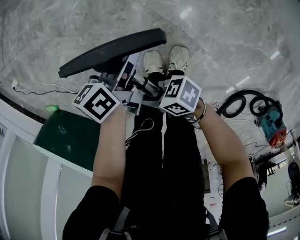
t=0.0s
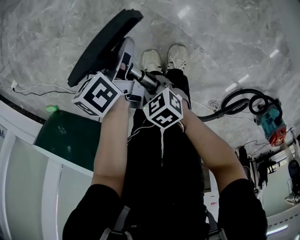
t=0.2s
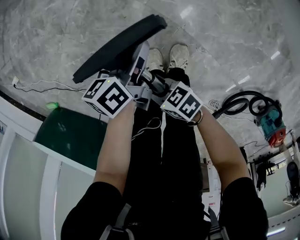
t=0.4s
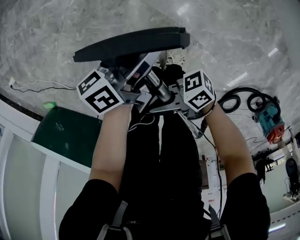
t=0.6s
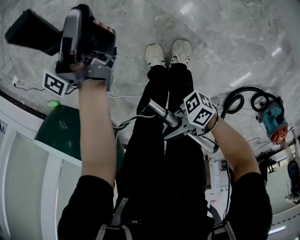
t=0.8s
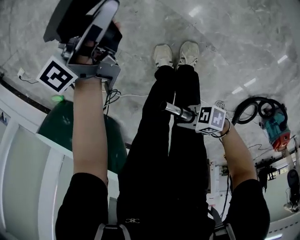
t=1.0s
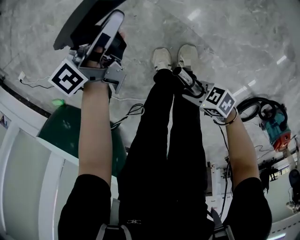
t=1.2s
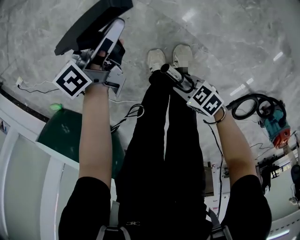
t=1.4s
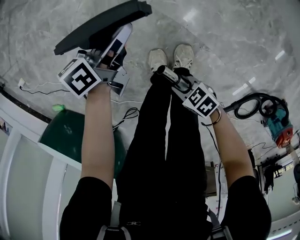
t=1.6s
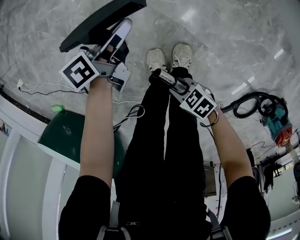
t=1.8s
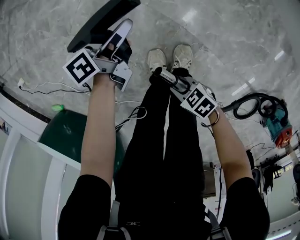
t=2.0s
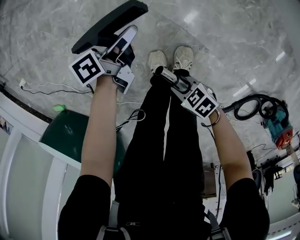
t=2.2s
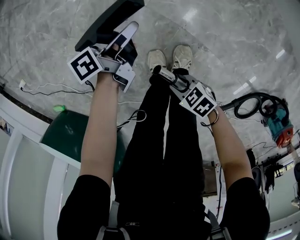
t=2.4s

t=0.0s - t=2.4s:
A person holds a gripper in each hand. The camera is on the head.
t=0.0s - t=1.2s: The left gripper shifts by about 10 cm, and rotates some 20 degrees, while the right gripper swings up and down, approximately 20 cm each way, with 2 reversals.
t=1.2s - t=2.4s: The left gripper shifts approximately 10 cm downward. Meanwhile the right gripper moves approximately 5 cm.

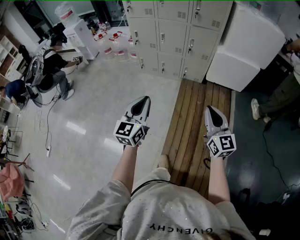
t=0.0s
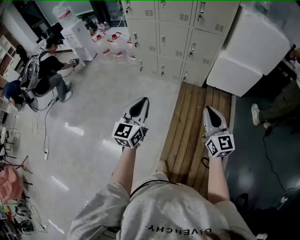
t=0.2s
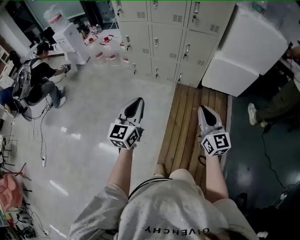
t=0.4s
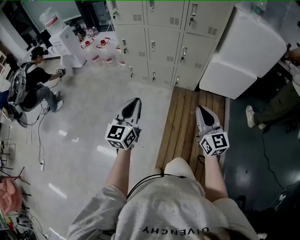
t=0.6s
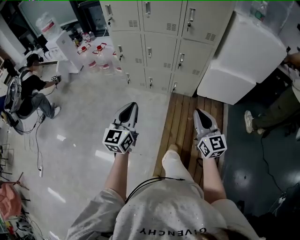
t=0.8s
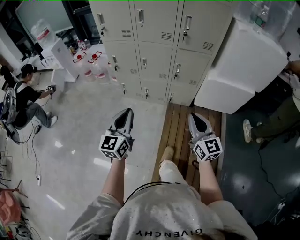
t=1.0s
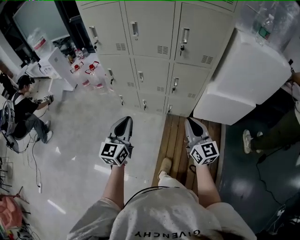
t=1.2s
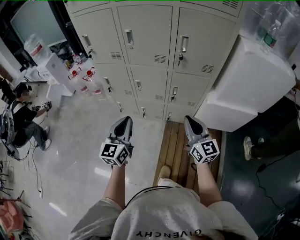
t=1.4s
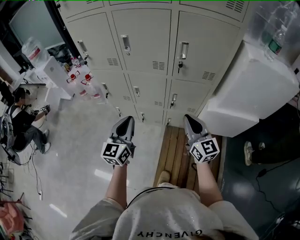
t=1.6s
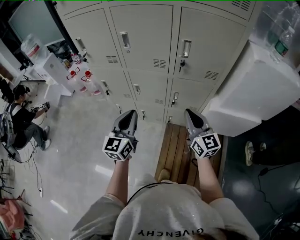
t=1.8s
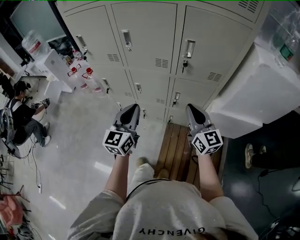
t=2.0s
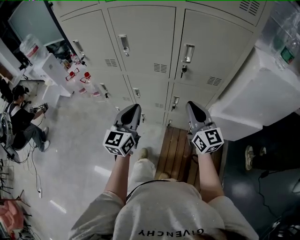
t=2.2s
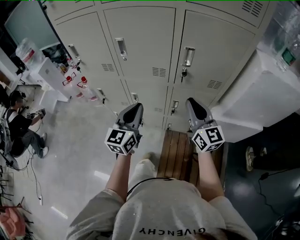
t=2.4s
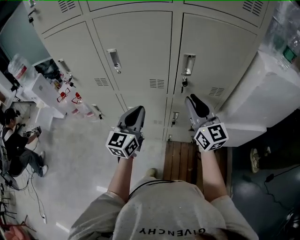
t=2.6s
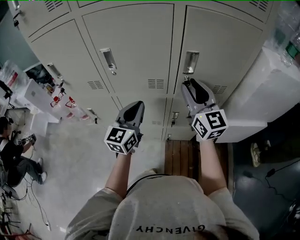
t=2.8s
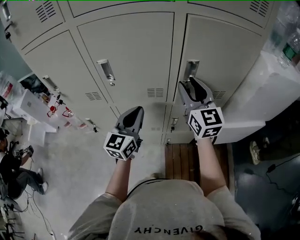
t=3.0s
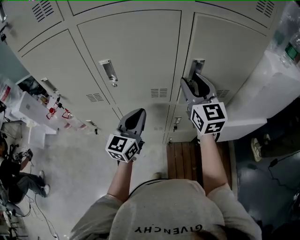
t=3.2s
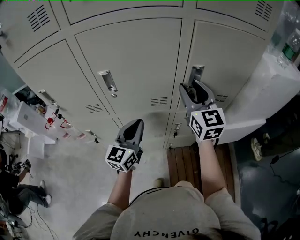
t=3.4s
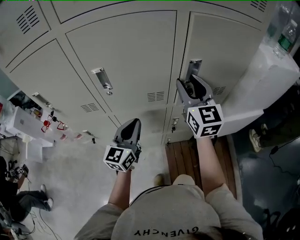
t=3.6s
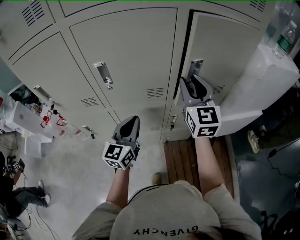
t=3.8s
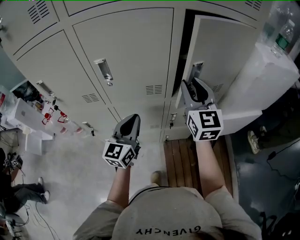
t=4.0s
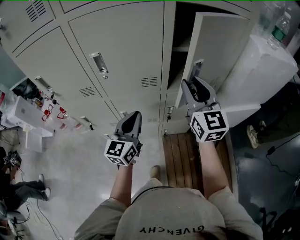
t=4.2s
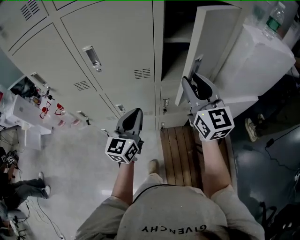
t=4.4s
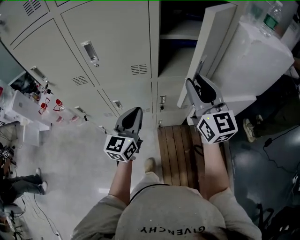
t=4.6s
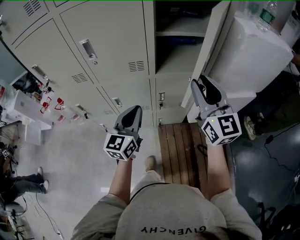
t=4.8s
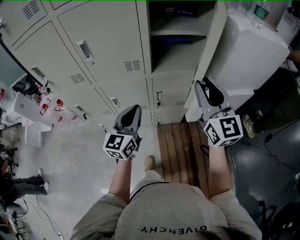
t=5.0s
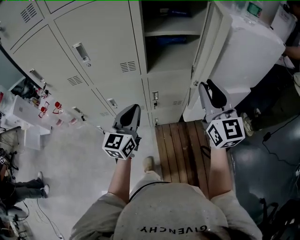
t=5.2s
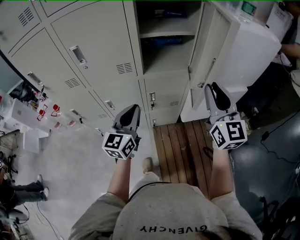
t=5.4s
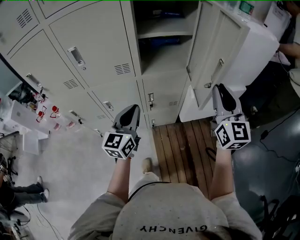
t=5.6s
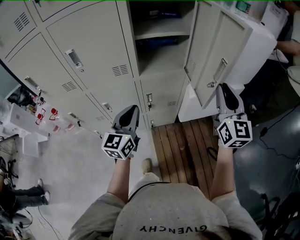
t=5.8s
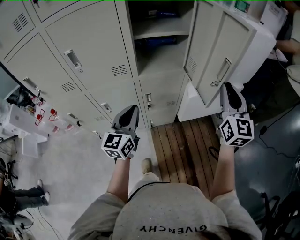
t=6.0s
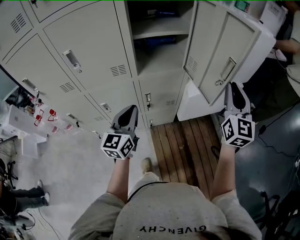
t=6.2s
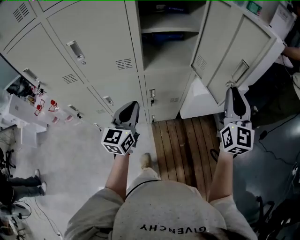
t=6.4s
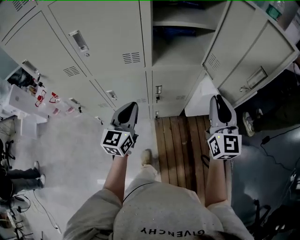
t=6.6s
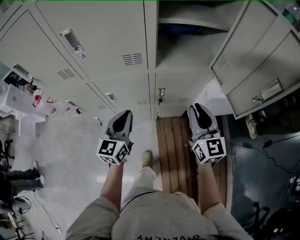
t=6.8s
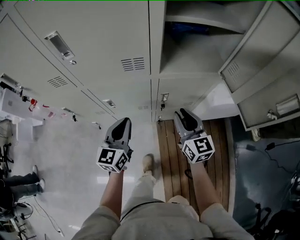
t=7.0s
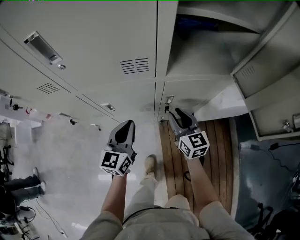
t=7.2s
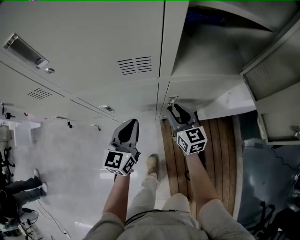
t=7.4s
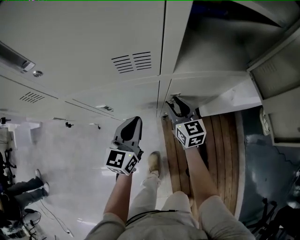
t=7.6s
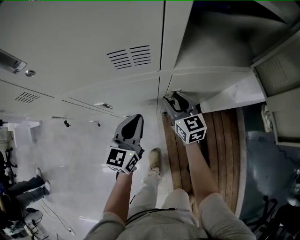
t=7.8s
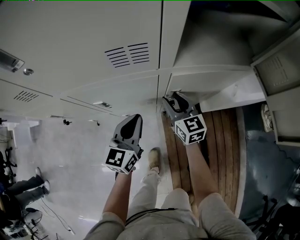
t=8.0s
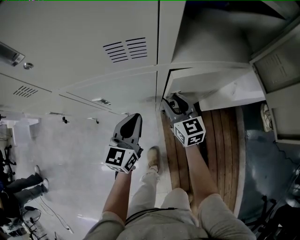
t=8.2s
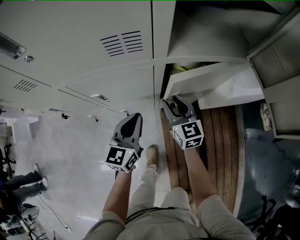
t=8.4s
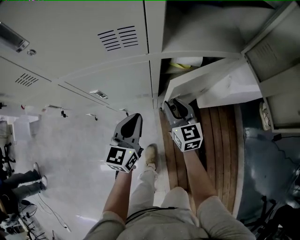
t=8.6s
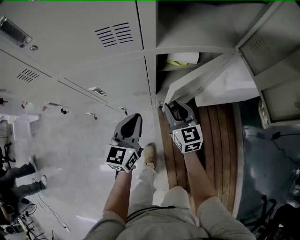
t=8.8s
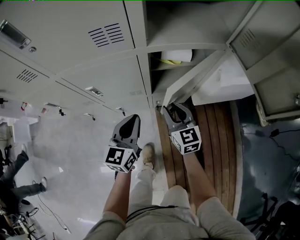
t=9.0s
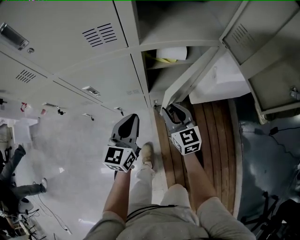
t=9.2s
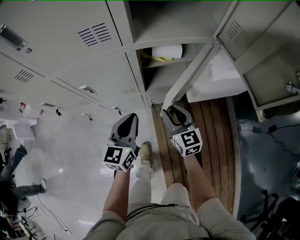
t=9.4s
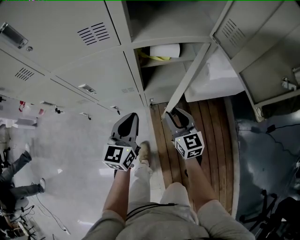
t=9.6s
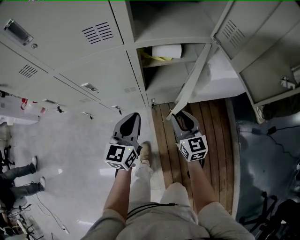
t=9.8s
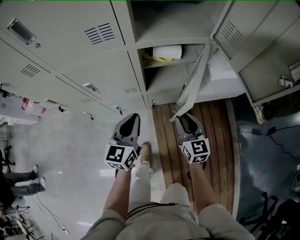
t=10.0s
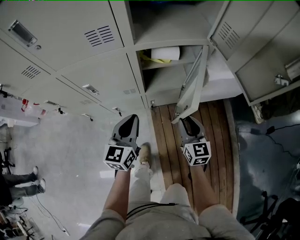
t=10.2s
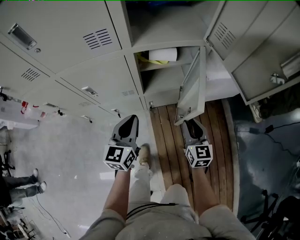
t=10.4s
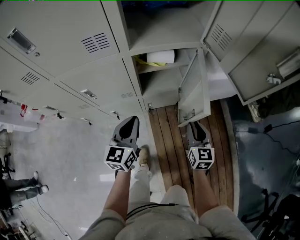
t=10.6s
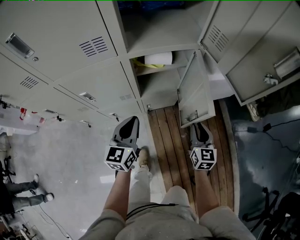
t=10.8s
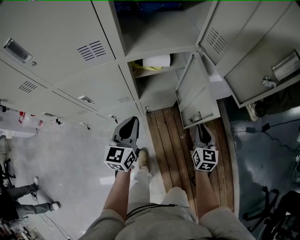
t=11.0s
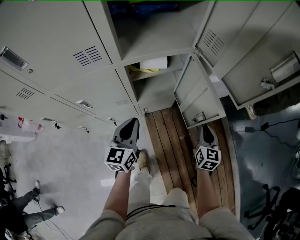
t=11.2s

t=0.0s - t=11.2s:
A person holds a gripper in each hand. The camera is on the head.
t=0.0s - t=1.6s: Both grippers are carried forward, about 50 cm.
t=1.6s - t=3.2s: Both grippers move forward, roughly 30 cm. The left gripper swivels about 20 degrees; the right gripper turns by some 20 degrees, and opens its fingers.
t=3.2s - t=4.8s: The left gripper is displaced backward and to the right by roughly 15 cm; the right gripper shifts roughly 20 cm backward and to the right.
t=4.8s - t=6.4s: The right gripper shifts roughly 15 cm to the right, and turns by some 30 degrees.
t=6.4s - t=8.0s: The left gripper heads downward and forward, covering approximately 25 cm, while the right gripper heads downward, to the left and forward, covering about 60 cm, swivels some 40 degrees, and opens up.
t=8.0s - t=9.6s: The right gripper travels backward and to the right by about 20 cm. The left gripper goes roughly 10 cm backward and to the right.
t=9.6s - t=11.2s: The right gripper goes approximately 20 cm to the right, and turns by some 40 degrees.

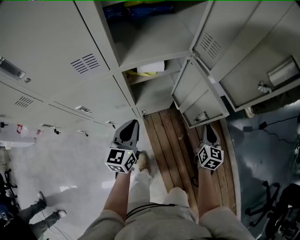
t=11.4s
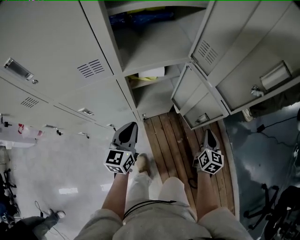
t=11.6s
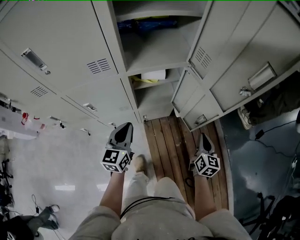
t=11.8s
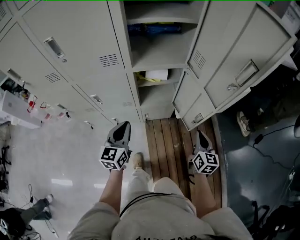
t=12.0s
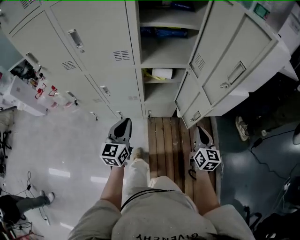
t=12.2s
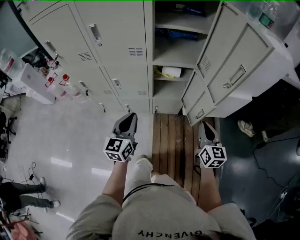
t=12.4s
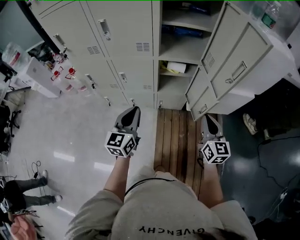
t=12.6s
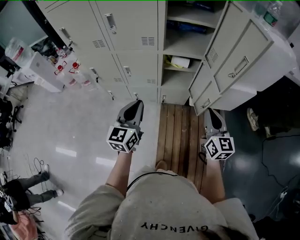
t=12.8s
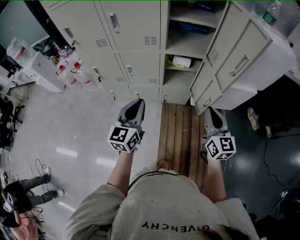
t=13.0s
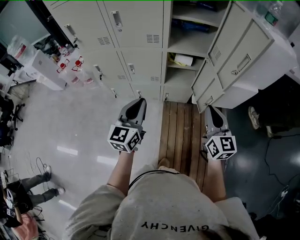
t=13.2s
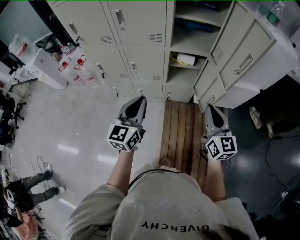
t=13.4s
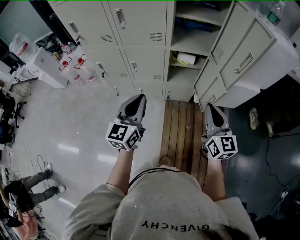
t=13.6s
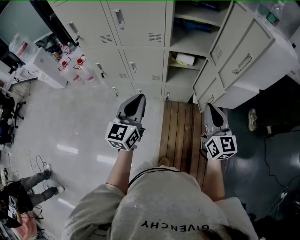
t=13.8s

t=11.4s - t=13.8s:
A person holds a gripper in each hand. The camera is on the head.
t=11.4s - t=12.6s: Both grippers move upward, approximately 25 cm. The left gripper rotates approximately 20 degrees. Meanwhile the right gripper turns by about 40 degrees.
t=12.6s - t=13.8s: The right gripper shifts about 10 cm upward and to the left; the left gripper travels upward by approximately 5 cm.

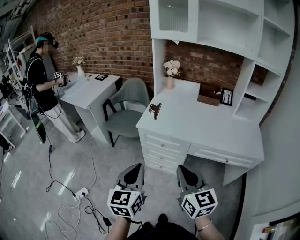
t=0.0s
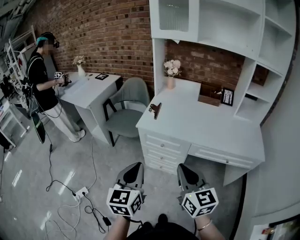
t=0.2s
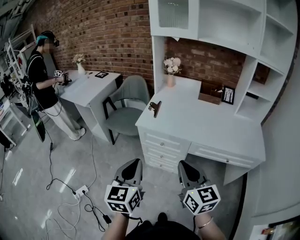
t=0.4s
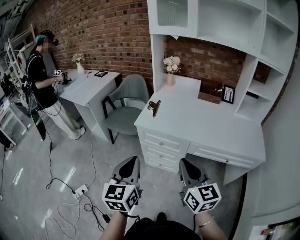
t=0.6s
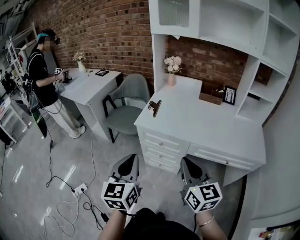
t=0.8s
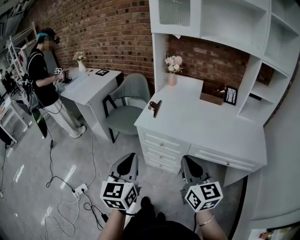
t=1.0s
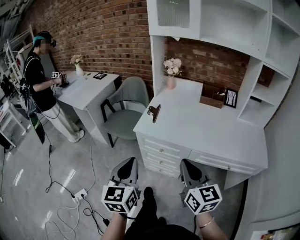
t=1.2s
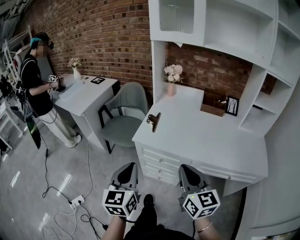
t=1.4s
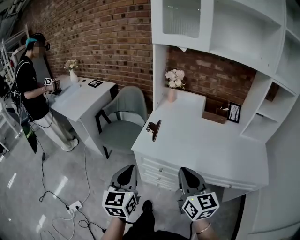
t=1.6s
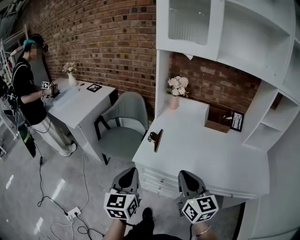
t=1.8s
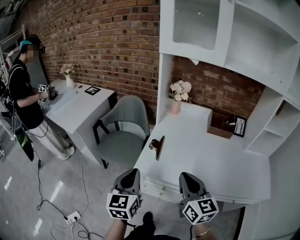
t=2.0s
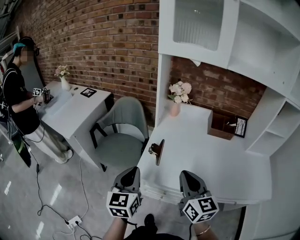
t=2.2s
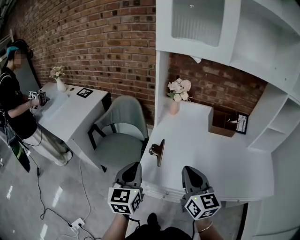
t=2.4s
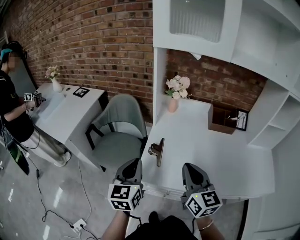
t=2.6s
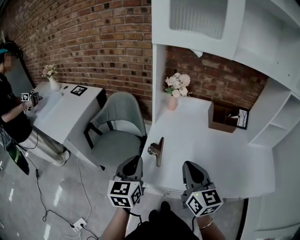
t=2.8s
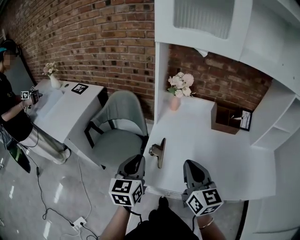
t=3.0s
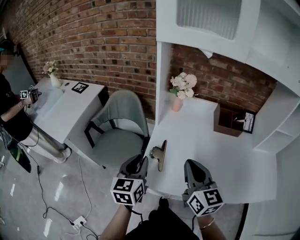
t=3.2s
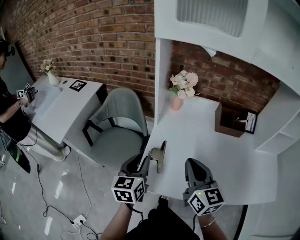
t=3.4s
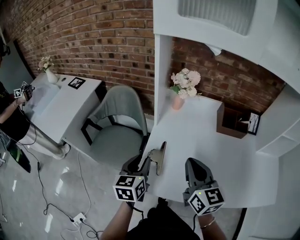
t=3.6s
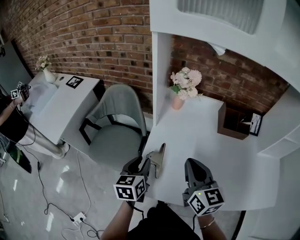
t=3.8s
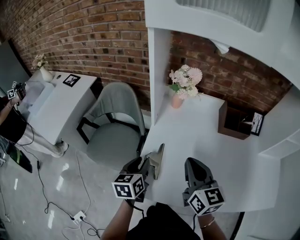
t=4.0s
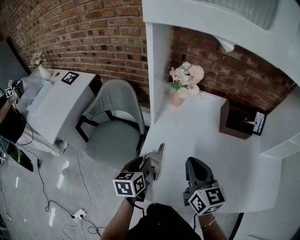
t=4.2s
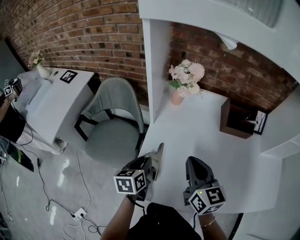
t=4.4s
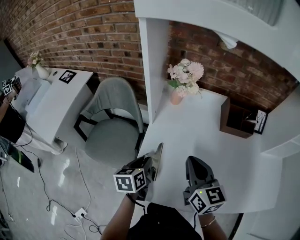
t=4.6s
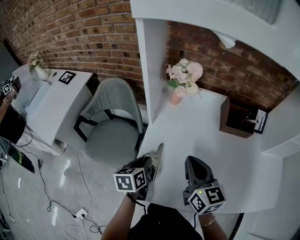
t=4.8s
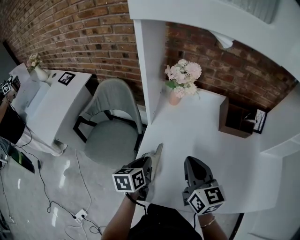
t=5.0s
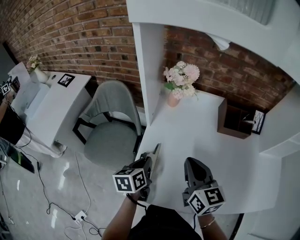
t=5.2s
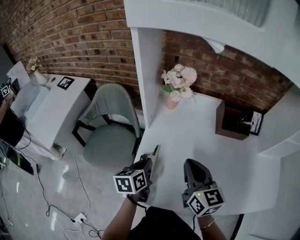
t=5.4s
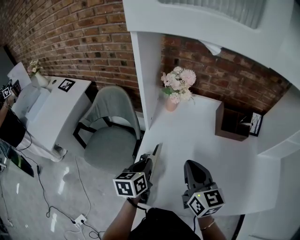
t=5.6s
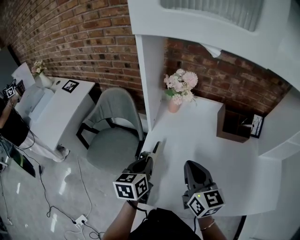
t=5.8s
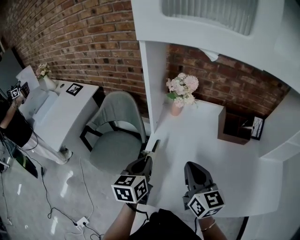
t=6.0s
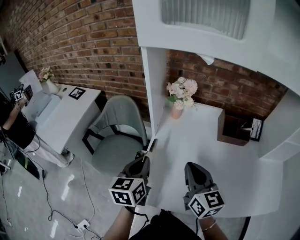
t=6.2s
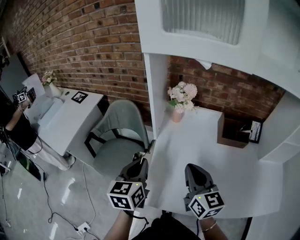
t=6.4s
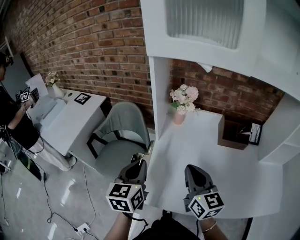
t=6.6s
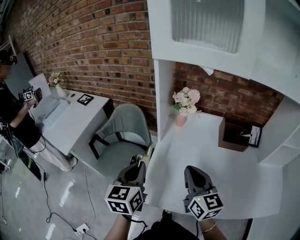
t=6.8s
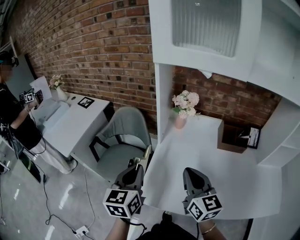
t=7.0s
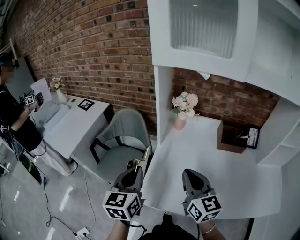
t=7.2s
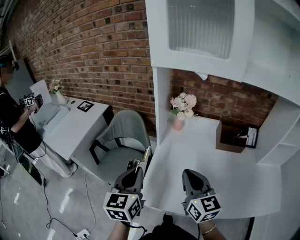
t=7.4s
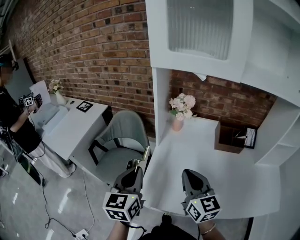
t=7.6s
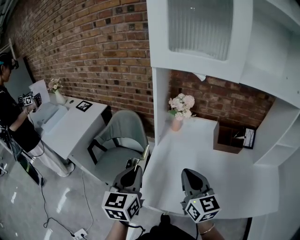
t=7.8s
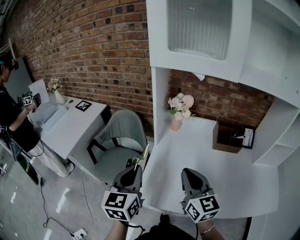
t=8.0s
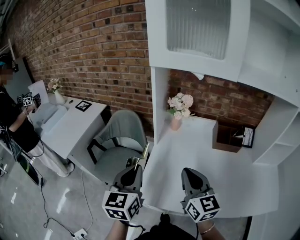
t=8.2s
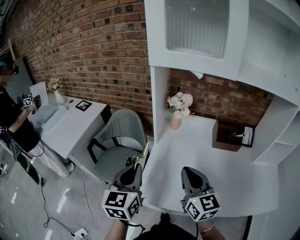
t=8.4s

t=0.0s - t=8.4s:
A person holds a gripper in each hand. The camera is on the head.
t=0.0s - t=1.4s: The two grippers go approximately 15 cm forward.
t=1.4s - t=2.8s: The grippers both shift forward by roughly 30 cm.
t=2.8s - t=4.2s: The left gripper shifts some 20 cm downward and forward, changes its angle by approximately 30 degrees, and opens its fingers, while the right gripper moves forward and downward, roughly 15 cm.
t=4.2s - t=5.6s: The left gripper closes up.
t=5.6s - t=7.0s: The right gripper heads upward and backward, covering about 10 cm. The left gripper heads upward, to the left and backward, covering some 20 cm, and rotates approximately 30 degrees.
t=7.0s - t=8.4s: The grippers move only a little.
